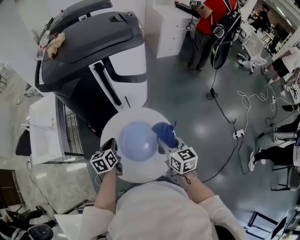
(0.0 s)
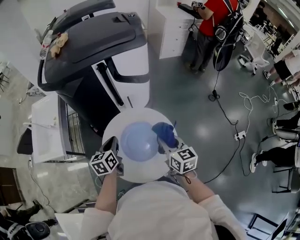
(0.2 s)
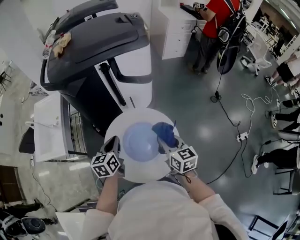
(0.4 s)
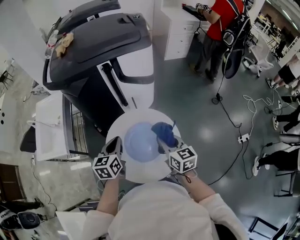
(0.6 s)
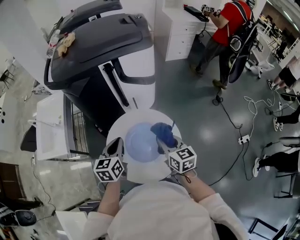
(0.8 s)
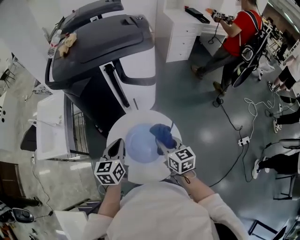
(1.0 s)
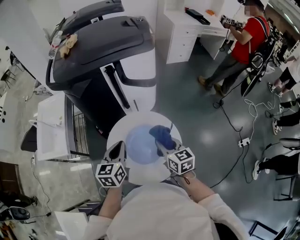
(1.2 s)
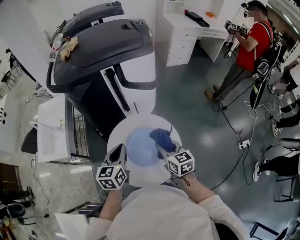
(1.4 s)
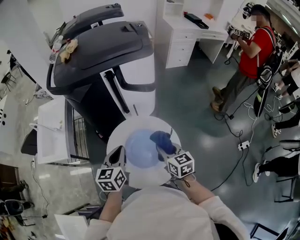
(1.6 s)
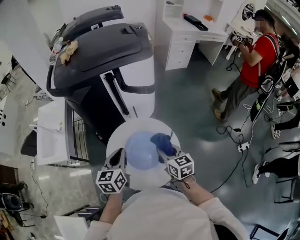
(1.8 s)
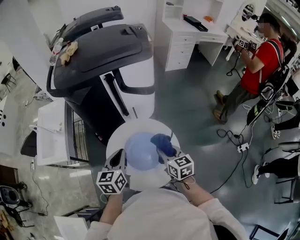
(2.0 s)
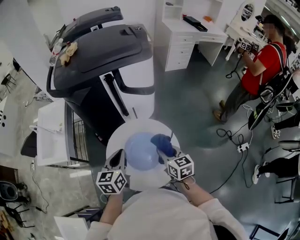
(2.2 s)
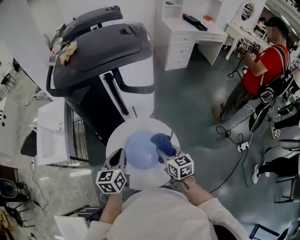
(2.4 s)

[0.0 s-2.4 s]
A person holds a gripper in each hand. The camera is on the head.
0.0 to 1.2 s: The left gripper goes some 10 cm upward.
1.2 to 2.4 s: There are only small adjustments of the grippers.

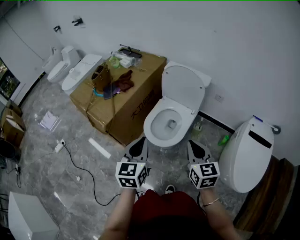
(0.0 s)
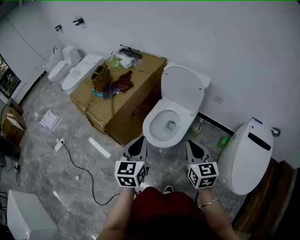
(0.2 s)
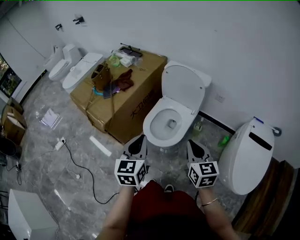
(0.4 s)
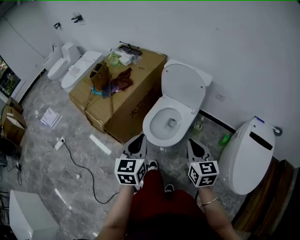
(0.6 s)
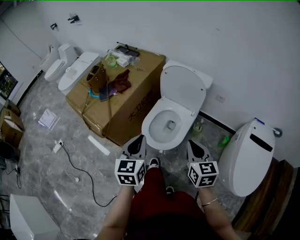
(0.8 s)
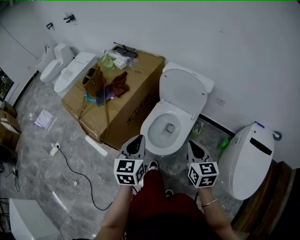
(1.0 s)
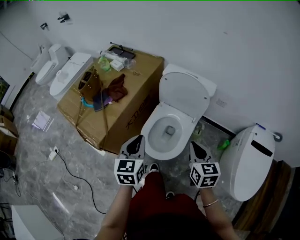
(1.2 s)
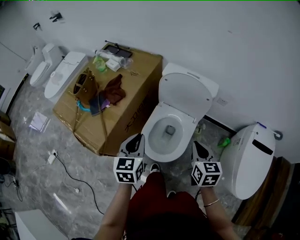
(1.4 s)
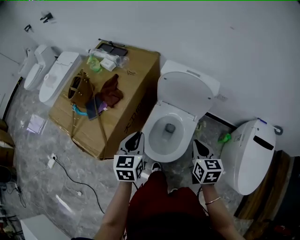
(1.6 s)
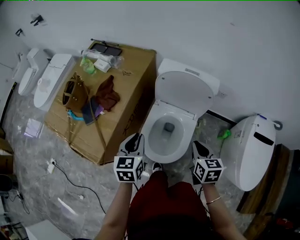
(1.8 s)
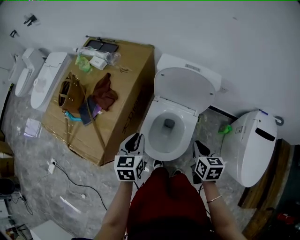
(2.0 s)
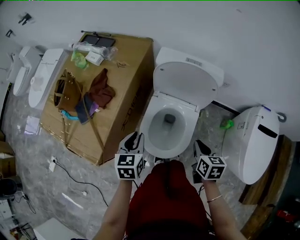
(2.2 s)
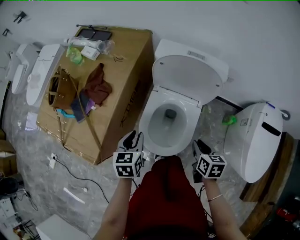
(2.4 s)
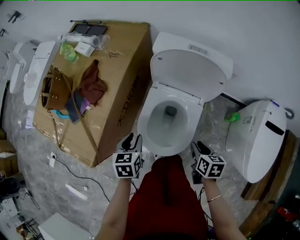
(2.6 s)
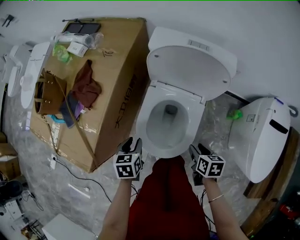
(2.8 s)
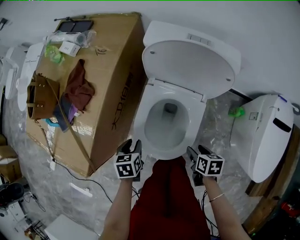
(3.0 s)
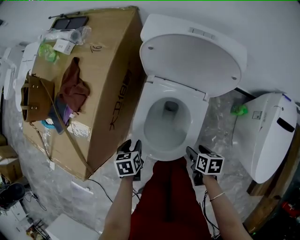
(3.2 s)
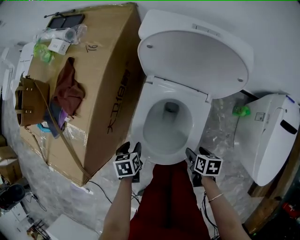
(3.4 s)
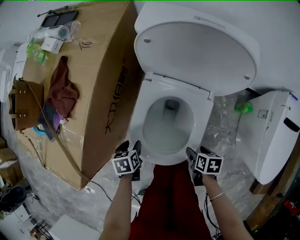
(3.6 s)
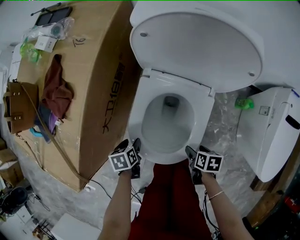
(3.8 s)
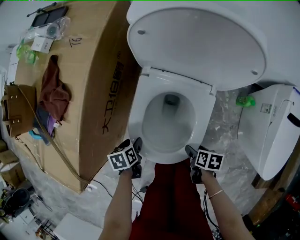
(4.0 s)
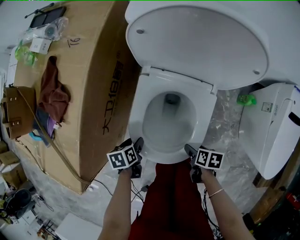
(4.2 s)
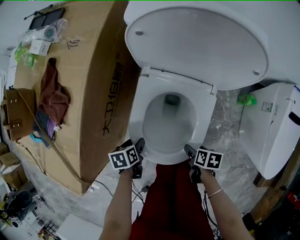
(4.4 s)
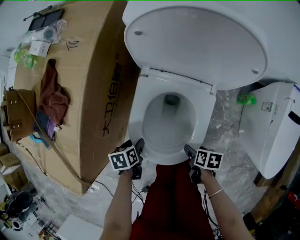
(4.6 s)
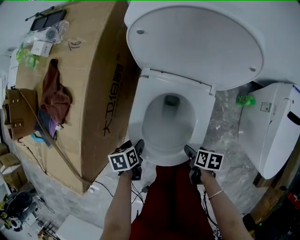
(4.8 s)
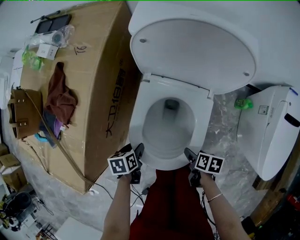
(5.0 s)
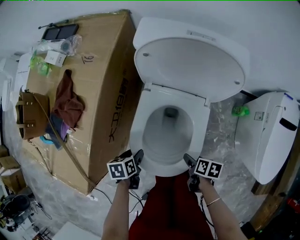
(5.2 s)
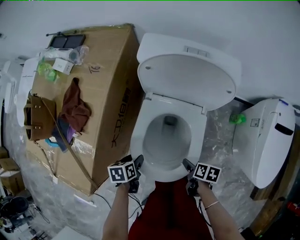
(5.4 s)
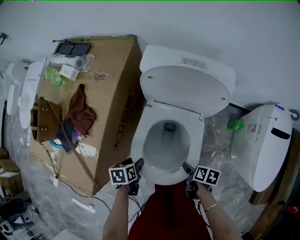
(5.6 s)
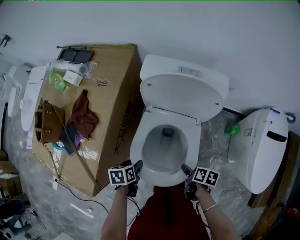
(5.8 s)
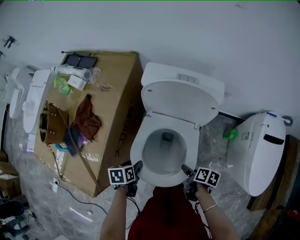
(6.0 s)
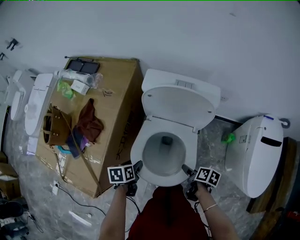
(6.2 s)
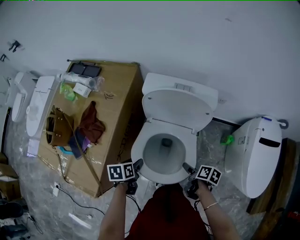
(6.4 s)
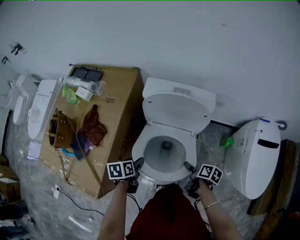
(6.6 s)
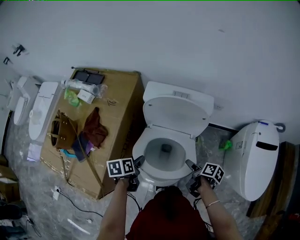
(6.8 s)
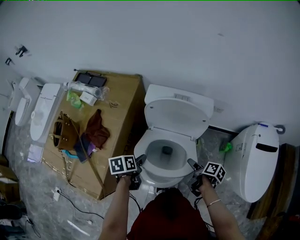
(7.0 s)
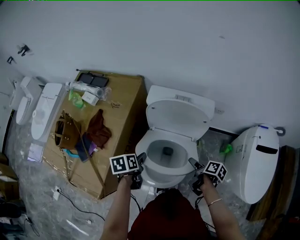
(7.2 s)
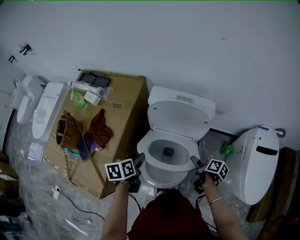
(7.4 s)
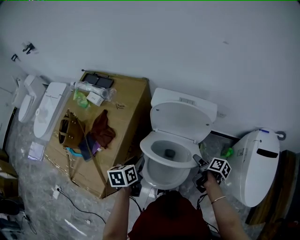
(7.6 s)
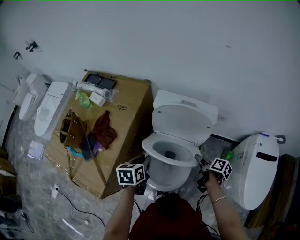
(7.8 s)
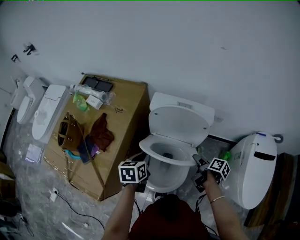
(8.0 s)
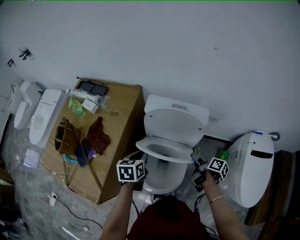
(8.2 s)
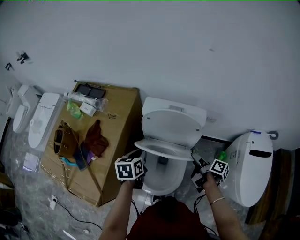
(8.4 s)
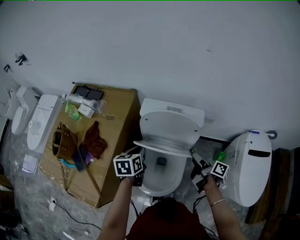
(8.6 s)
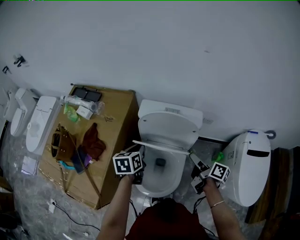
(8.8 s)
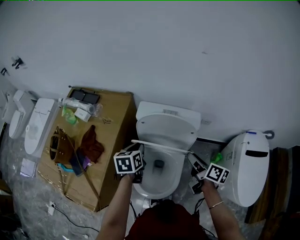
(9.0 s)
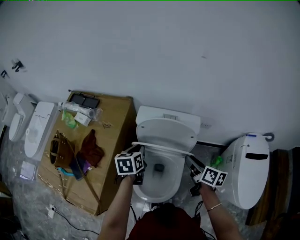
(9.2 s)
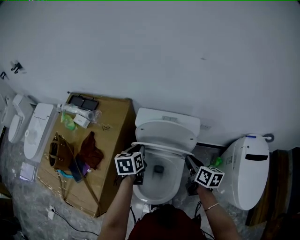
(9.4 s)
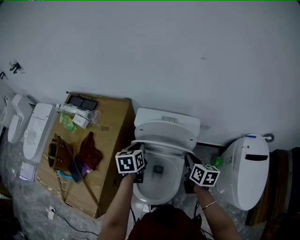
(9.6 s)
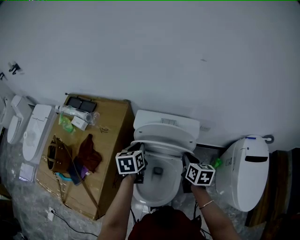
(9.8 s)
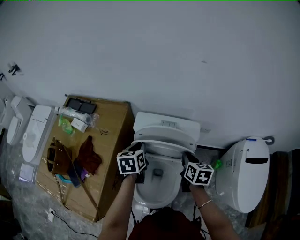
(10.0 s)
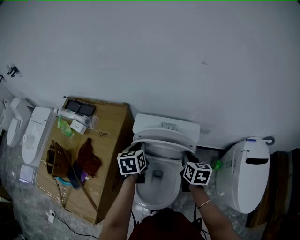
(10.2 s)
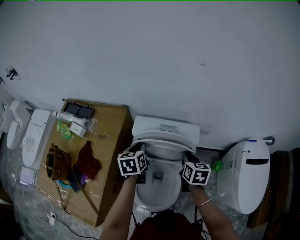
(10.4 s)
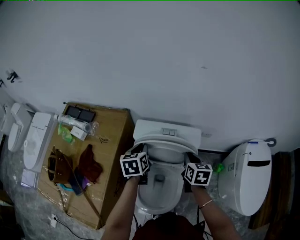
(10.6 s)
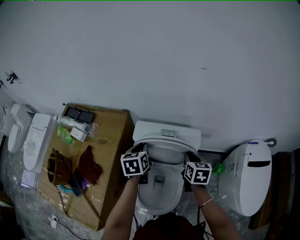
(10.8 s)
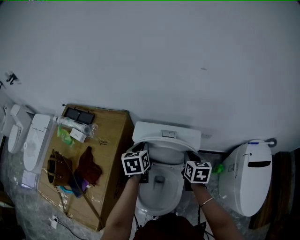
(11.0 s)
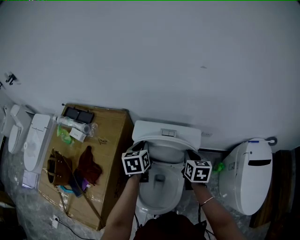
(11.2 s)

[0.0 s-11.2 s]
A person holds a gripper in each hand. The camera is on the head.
0.0 to 1.6 s: The left gripper shifts approximately 25 cm forward. The right gripper travels forward and downward by some 20 cm, and rotates approximately 20 degrees.
1.6 to 3.2 s: Both grippers move downward, roughly 30 cm. The left gripper angles its fingers downward, by about 40 degrees, and opens. Meanwhile the right gripper changes its angle by roughly 40 degrees, and opens its fingers.
3.2 to 4.8 s: Both grippers move downward, some 10 cm.
4.8 to 6.4 s: The two grippers go some 20 cm upward. The right gripper turns by some 20 degrees.
6.4 to 8.0 s: The right gripper heads forward and upward, covering some 10 cm. Meanwhile the left gripper goes approximately 15 cm upward and forward, swivels about 20 degrees, and closes up.
8.0 to 9.6 s: The right gripper is displaced upward and forward by some 15 cm, twists roughly 40 degrees counterclockwise, seen from behind, and closes its fingers. Meanwhile the left gripper moves forward, roughly 10 cm.
9.6 to 11.2 s: Both grippers move forward, roughly 10 cm.

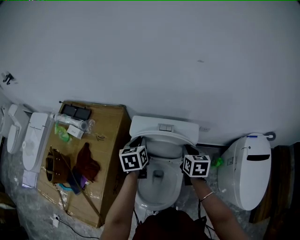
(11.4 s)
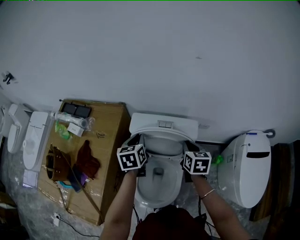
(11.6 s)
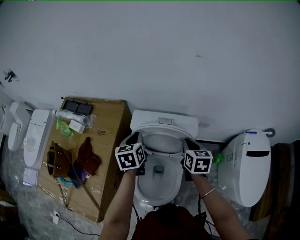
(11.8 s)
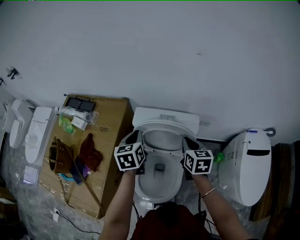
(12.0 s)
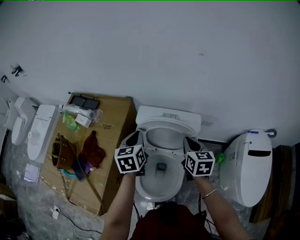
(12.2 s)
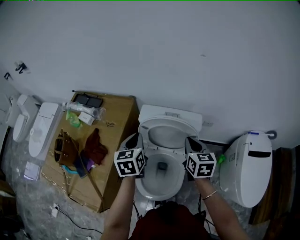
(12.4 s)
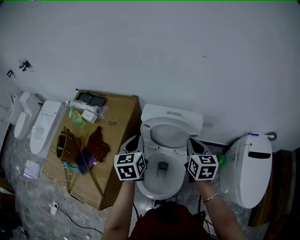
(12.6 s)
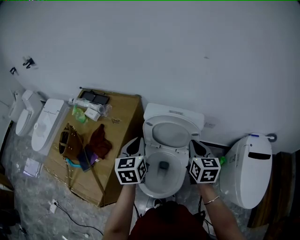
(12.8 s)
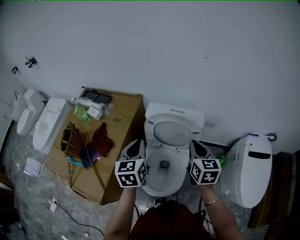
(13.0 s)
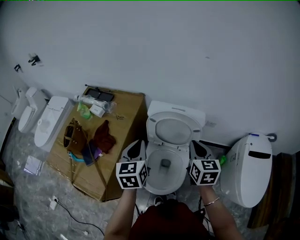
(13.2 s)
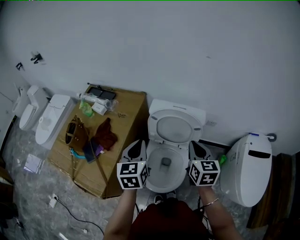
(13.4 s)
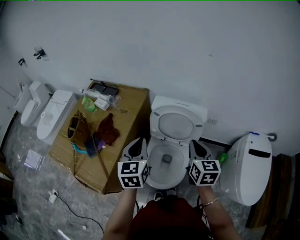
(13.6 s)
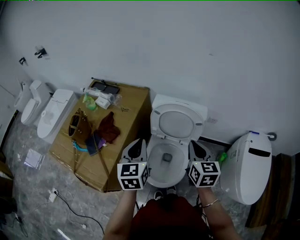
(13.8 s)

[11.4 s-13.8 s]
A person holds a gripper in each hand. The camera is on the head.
11.4 to 12.6 s: The right gripper moves upward and backward, roughly 15 cm. Meanwhile the left gripper heads backward and upward, covering some 15 cm.
12.6 to 13.8 s: Both grippers travel together backward, some 15 cm.

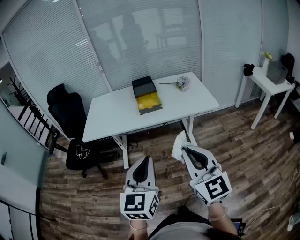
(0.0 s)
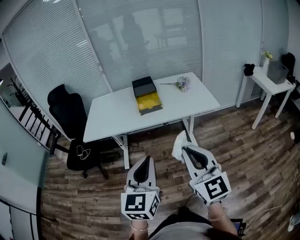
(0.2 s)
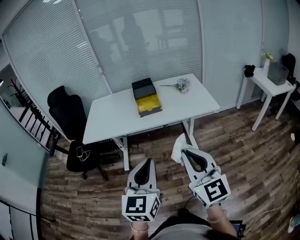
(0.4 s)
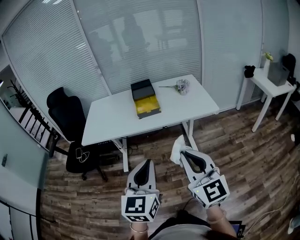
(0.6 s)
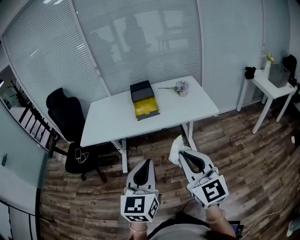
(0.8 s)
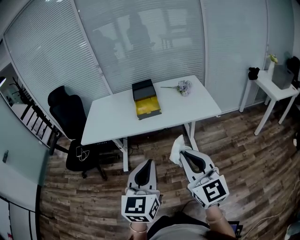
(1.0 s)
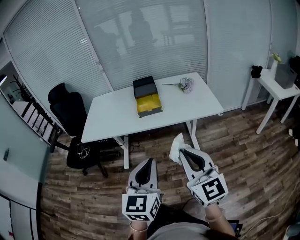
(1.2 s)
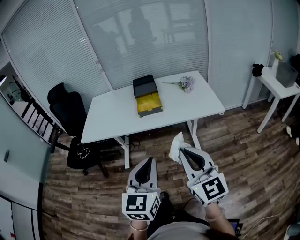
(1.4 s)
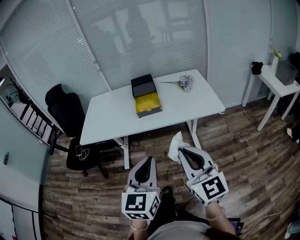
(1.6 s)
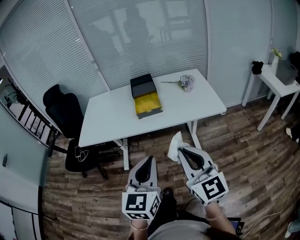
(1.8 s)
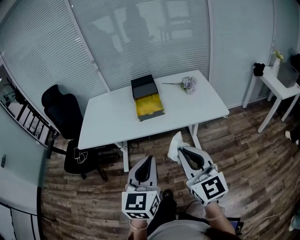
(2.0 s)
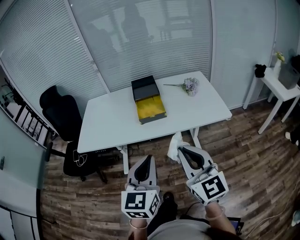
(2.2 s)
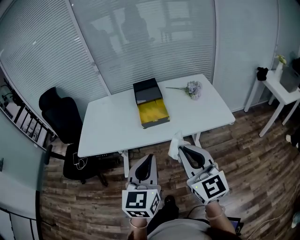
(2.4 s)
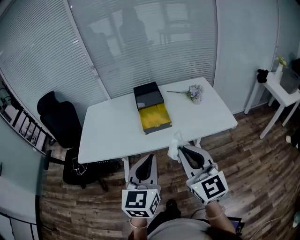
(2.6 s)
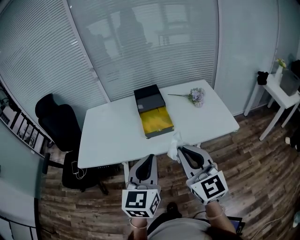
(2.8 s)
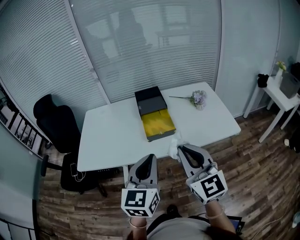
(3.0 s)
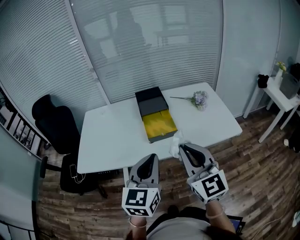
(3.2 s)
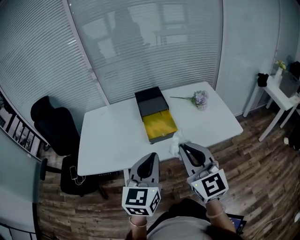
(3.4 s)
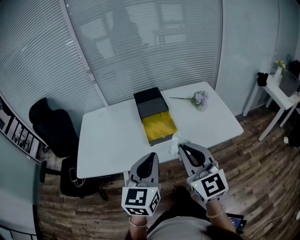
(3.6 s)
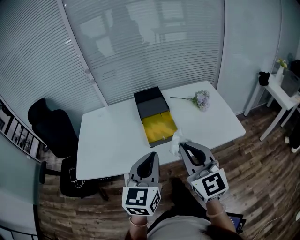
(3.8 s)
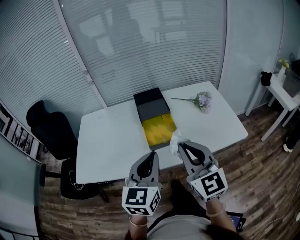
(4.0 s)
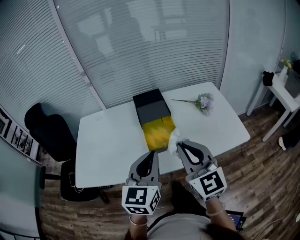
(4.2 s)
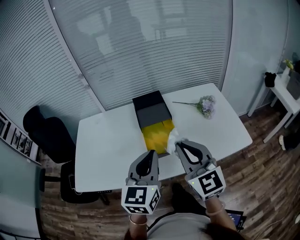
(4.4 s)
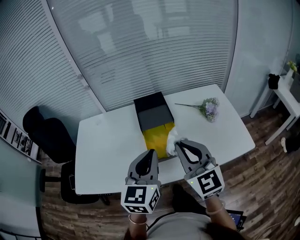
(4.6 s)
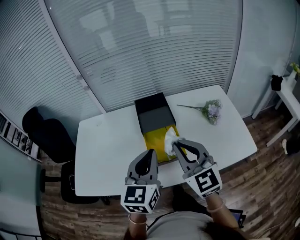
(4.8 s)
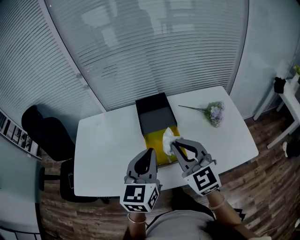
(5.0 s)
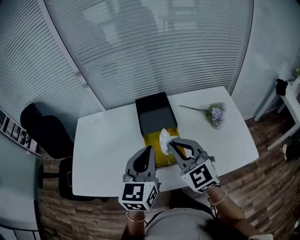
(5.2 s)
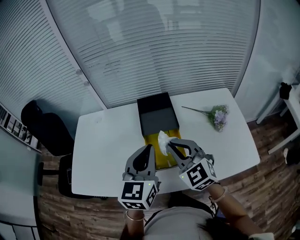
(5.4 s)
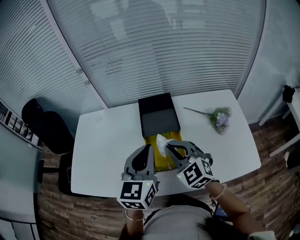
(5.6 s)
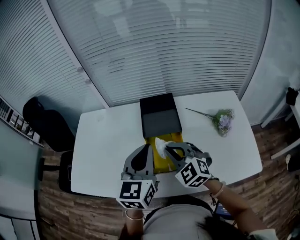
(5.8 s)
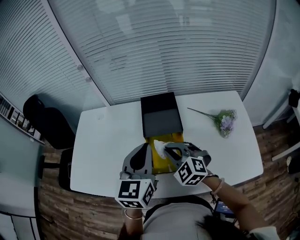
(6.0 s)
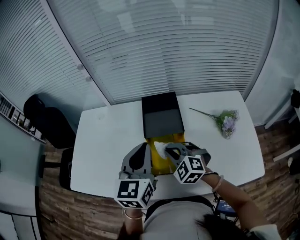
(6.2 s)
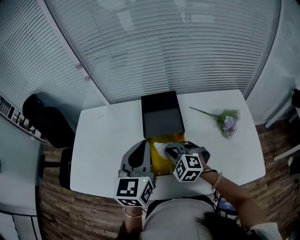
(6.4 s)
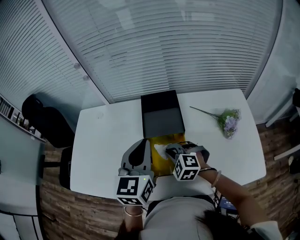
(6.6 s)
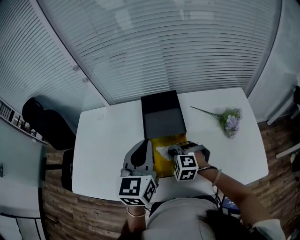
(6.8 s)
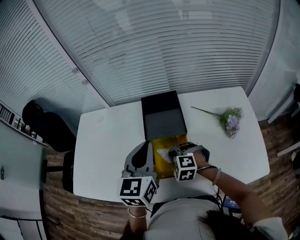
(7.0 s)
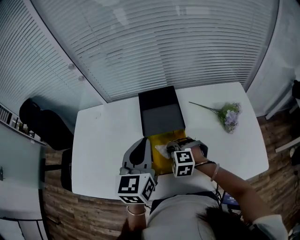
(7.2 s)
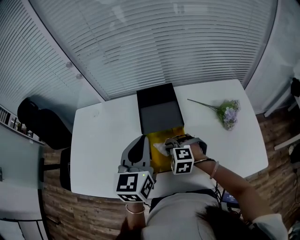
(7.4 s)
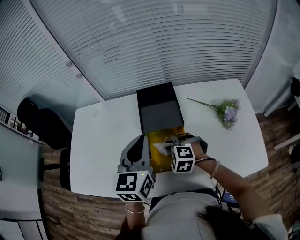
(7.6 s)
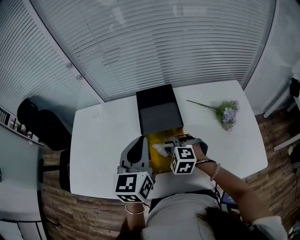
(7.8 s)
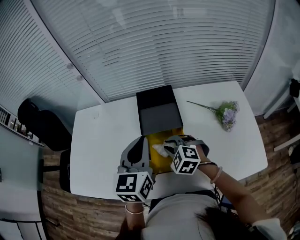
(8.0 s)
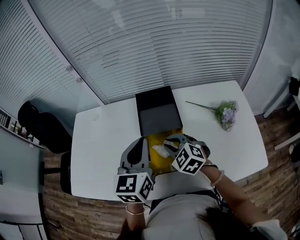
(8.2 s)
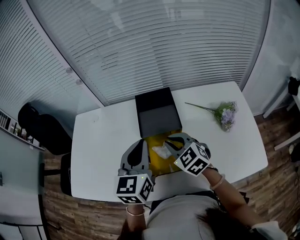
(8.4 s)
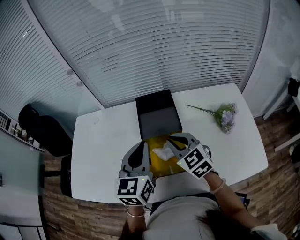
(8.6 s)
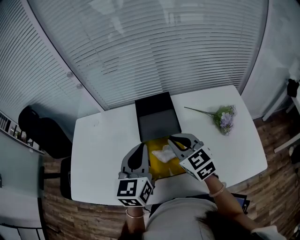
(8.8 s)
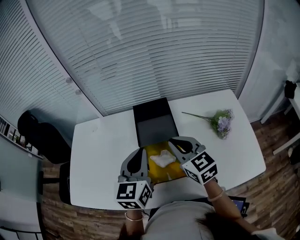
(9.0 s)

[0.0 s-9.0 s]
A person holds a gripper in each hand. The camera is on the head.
0.0 to 1.6 s: The right gripper is displaced forward by some 10 cm; the left gripper goes roughly 10 cm forward and to the right.
1.6 to 3.0 s: Both grippers move forward, about 25 cm.
3.0 to 4.4 s: Both grippers travel together forward, roughly 15 cm.
4.4 to 6.0 s: The left gripper moves forward, approximately 15 cm, while the right gripper travels downward and forward by roughly 25 cm, and tilts its fingers approximately 30 degrees downward.
6.0 to 7.6 s: The right gripper moves downward, about 10 cm, and rotates some 30 degrees.
7.6 to 9.0 s: The right gripper goes about 15 cm upward, and points its fingers about 40 degrees further upward.
